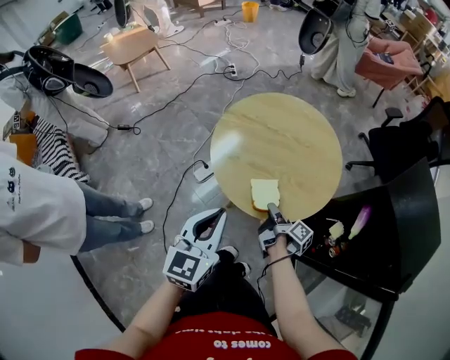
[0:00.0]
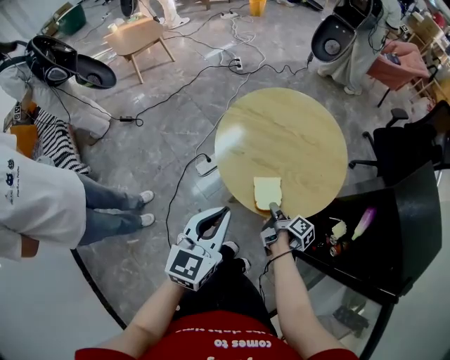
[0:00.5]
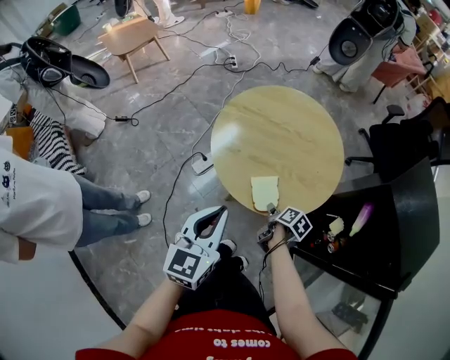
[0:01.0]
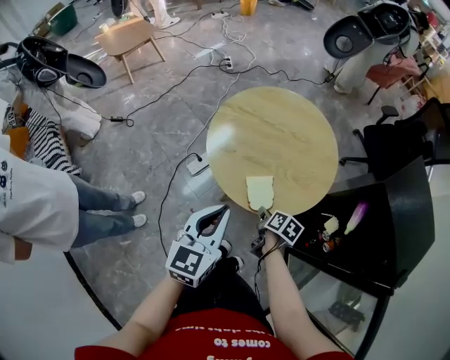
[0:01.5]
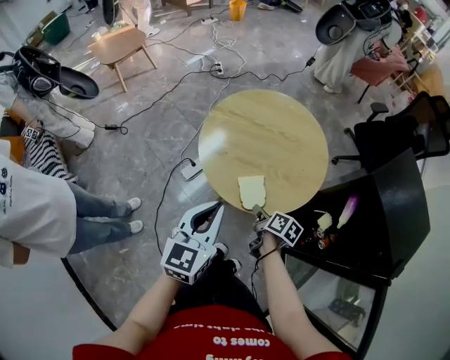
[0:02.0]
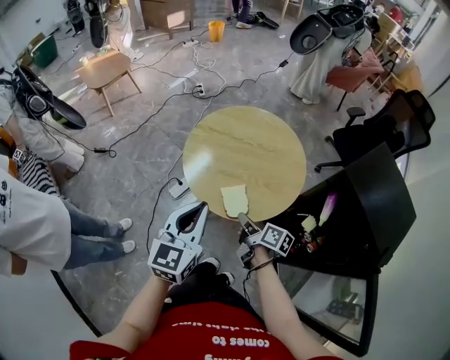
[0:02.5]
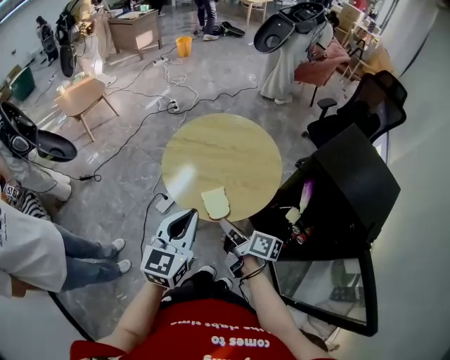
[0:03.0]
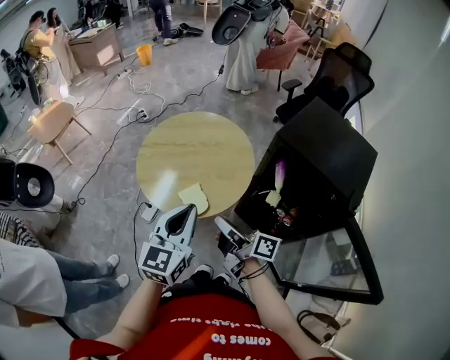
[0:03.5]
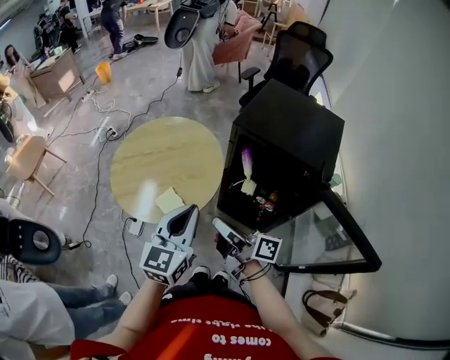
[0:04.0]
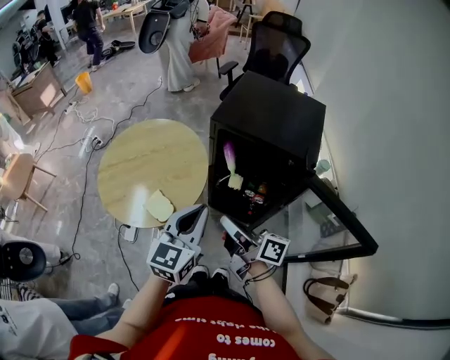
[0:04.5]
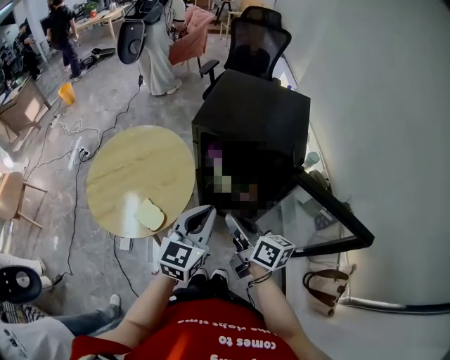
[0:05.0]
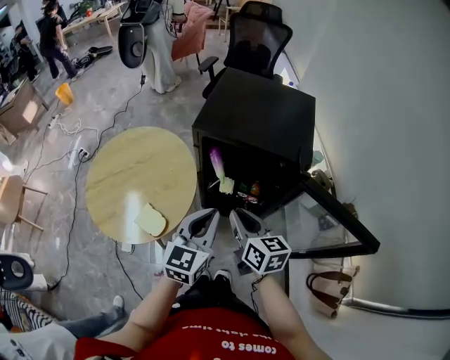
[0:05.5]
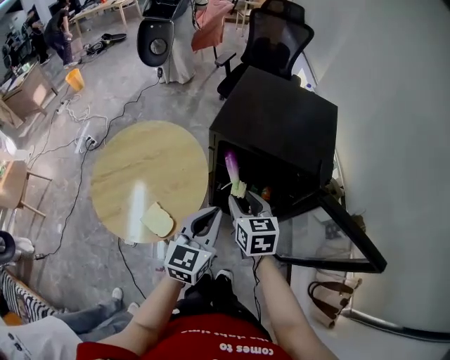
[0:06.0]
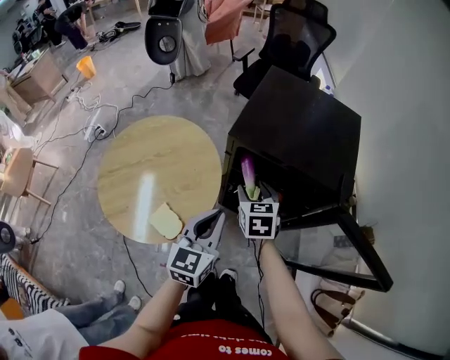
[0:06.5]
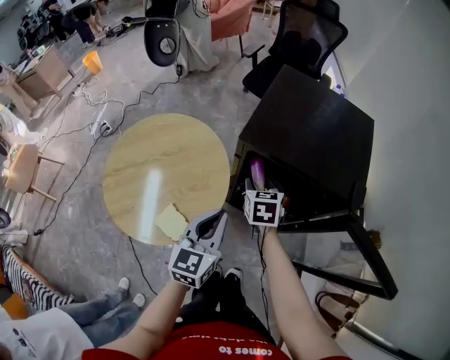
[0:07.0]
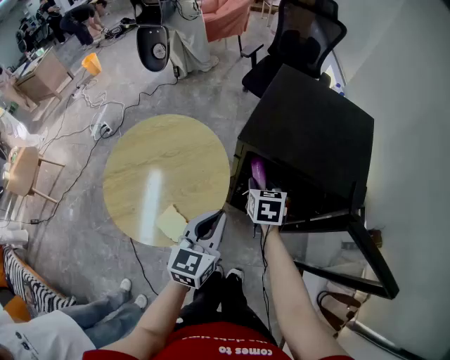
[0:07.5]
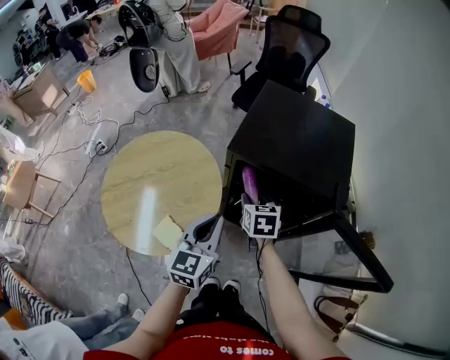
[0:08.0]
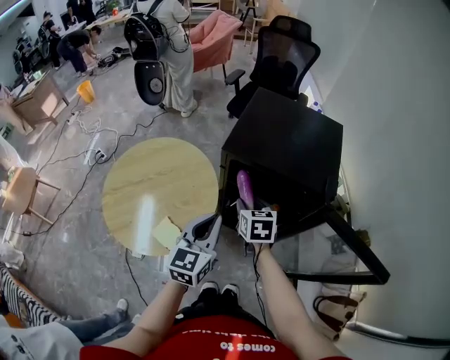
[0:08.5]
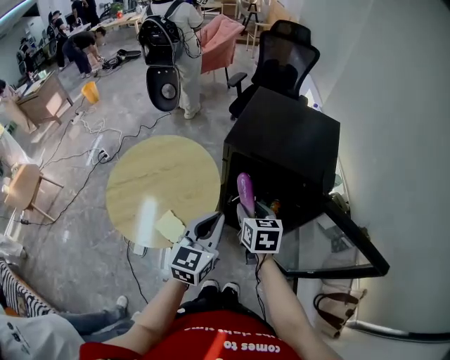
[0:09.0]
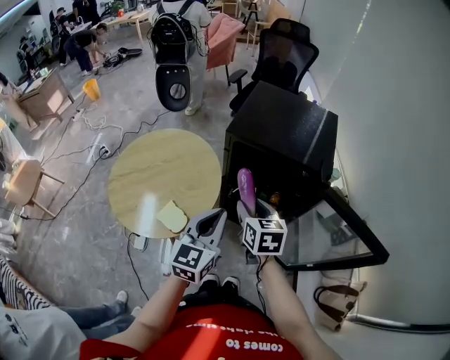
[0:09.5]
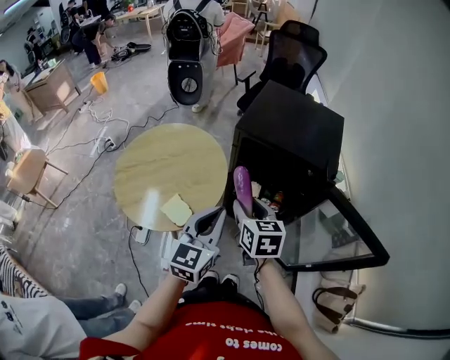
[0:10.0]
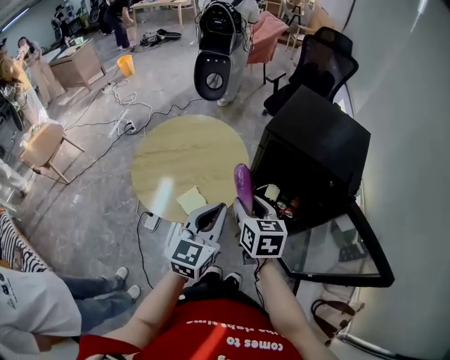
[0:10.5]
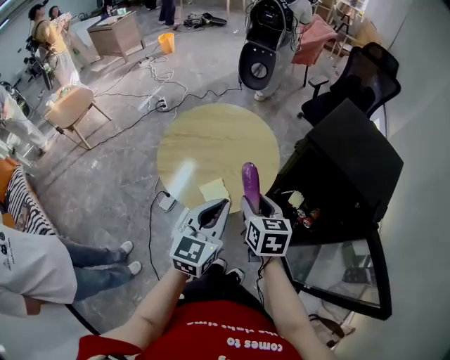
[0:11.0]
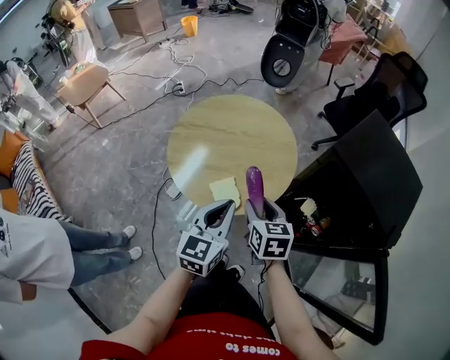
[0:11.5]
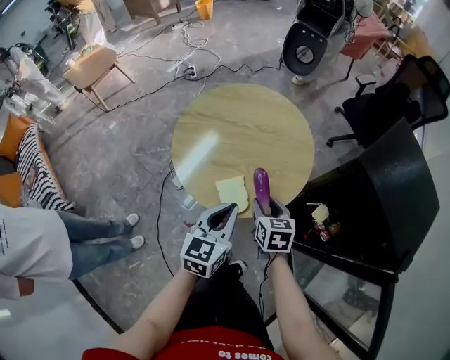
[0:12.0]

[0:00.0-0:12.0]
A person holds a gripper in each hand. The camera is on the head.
0:00.0 to 0:02.0: The right gripper changes its angle by about 30 degrees.
0:02.0 to 0:04.0: The left gripper moves to the right, roughly 20 cm, and changes its angle by some 30 degrees. Meanwhile the right gripper shifts roughly 30 cm upward, backward and to the right, and tilts its fingers some 50 degrees upward.
0:04.0 to 0:06.0: The right gripper shifts by some 20 cm, points its fingers some 40 degrees further downward, and opens its fingers. The left gripper shifts by about 15 cm.
0:06.0 to 0:08.0: The left gripper ends up roughly 5 cm from where it was. Meanwhile the right gripper moves forward and downward, about 10 cm.
0:08.0 to 0:10.0: The left gripper shifts approximately 10 cm backward and upward. Meanwhile the right gripper is displaced backward and upward by some 20 cm.
0:10.0 to 0:12.0: The left gripper shifts by approximately 20 cm, and swivels about 30 degrees, while the right gripper heads downward, covering some 20 cm, and rotates approximately 30 degrees.

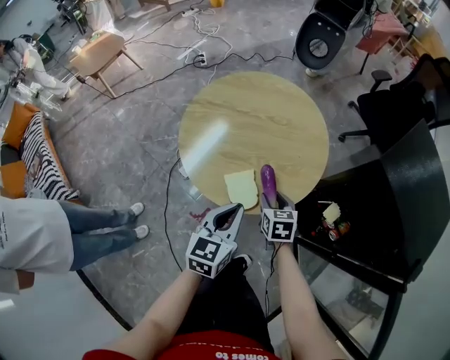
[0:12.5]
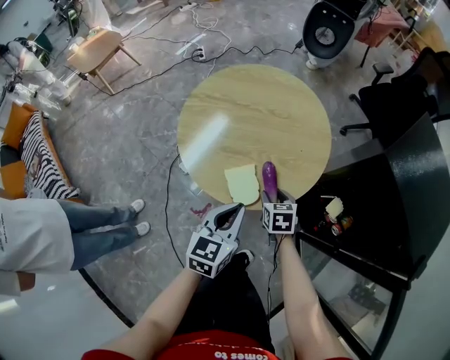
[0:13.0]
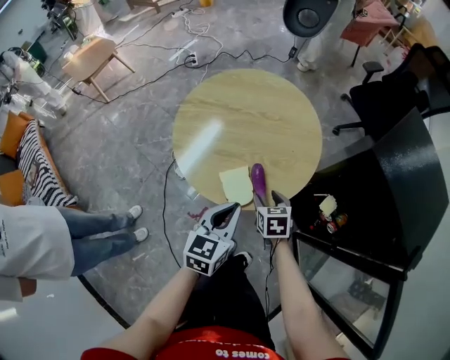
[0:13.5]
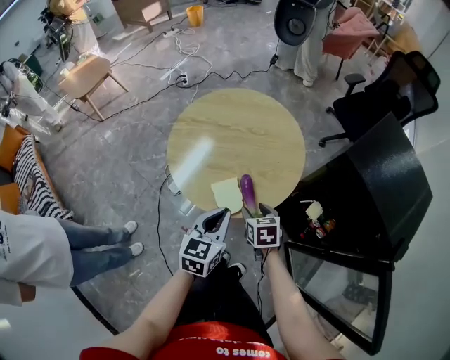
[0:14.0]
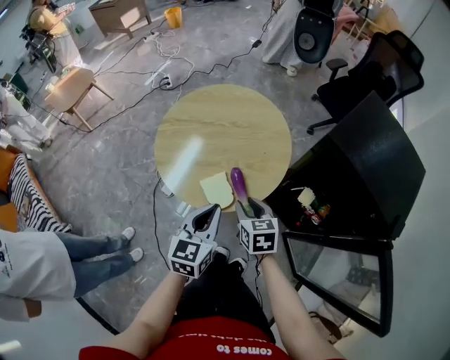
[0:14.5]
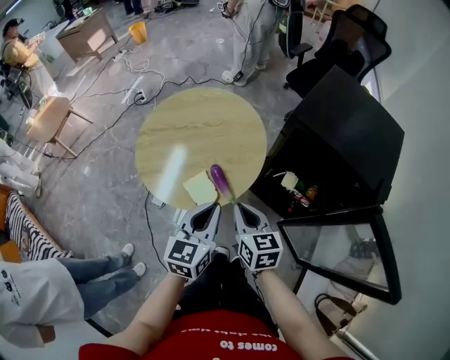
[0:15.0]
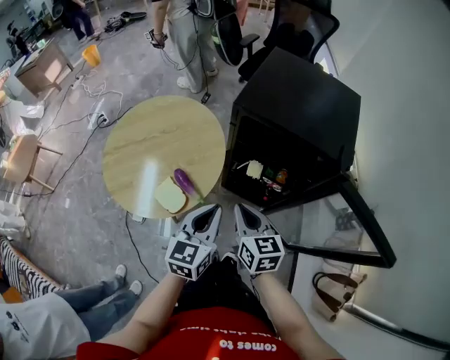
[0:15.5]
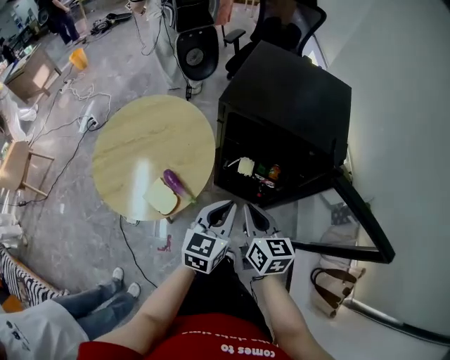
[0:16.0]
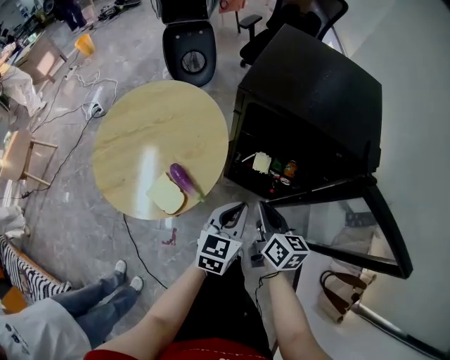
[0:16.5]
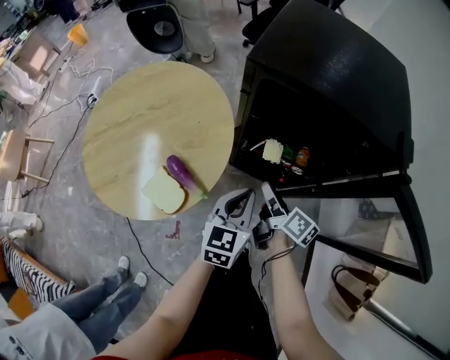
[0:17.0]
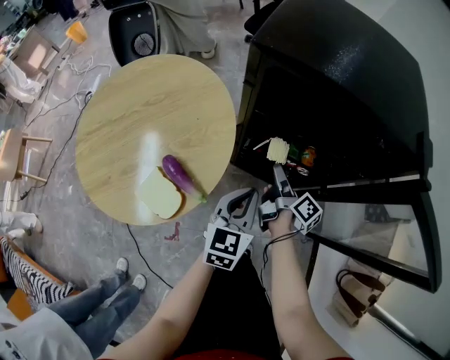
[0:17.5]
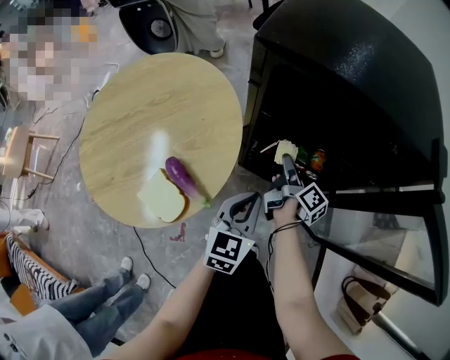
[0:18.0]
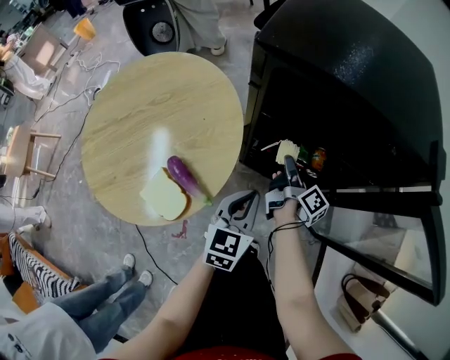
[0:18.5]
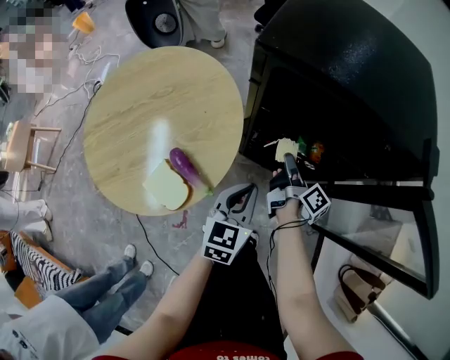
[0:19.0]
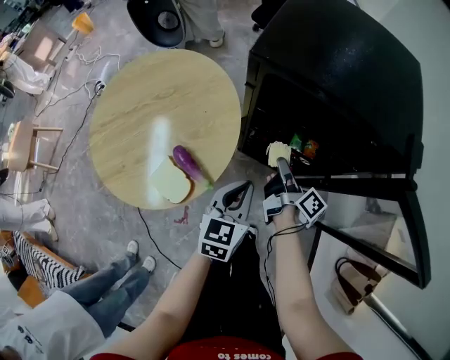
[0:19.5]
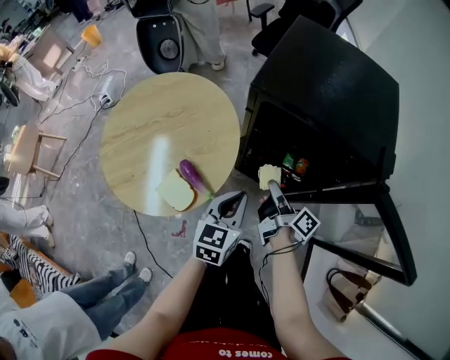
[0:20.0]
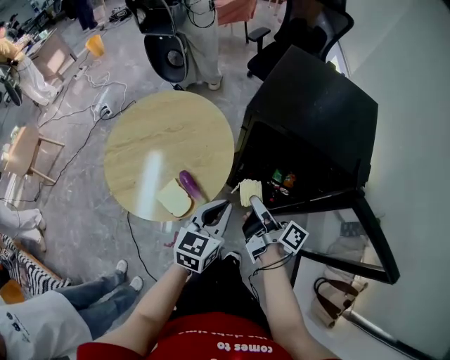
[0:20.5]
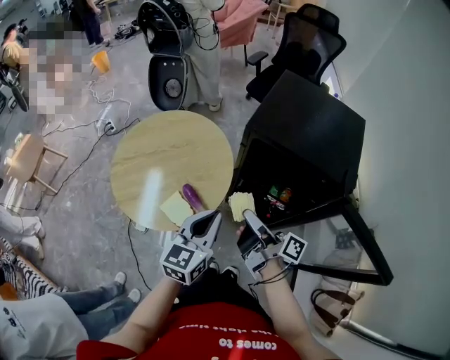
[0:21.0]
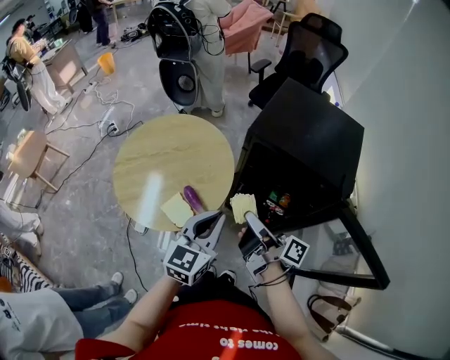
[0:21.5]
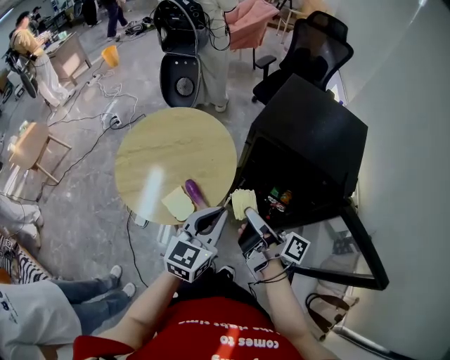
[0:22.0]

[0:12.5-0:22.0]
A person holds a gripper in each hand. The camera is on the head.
0:12.5 to 0:14.5: The left gripper changes place by roughly 5 cm. The right gripper moves upward and backward, some 10 cm.
0:14.5 to 0:16.5: The right gripper travels upward and back again, some 10 cm each way, turns by about 50 degrees, and closes its fingers. Meanwhile the left gripper shifts by about 25 cm, and rotates roughly 30 degrees.
0:16.5 to 0:18.0: The left gripper goes some 10 cm downward. Meanwhile the right gripper goes about 25 cm downward and forward, twists some 50 degrees clockwise, seen from behind, and opens.
0:18.0 to 0:20.0: The right gripper shifts about 20 cm upward and backward, and closes, while the left gripper heads upward, covering approximately 10 cm.
0:20.0 to 0:22.0: The two grippers go roughly 20 cm upward. The right gripper rotates approximately 30 degrees.

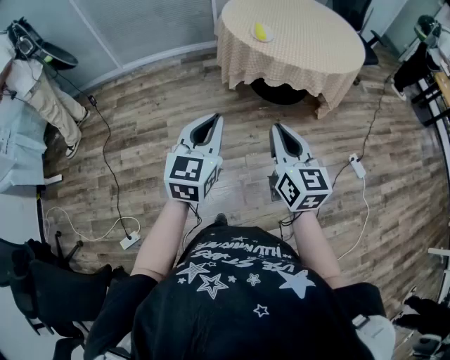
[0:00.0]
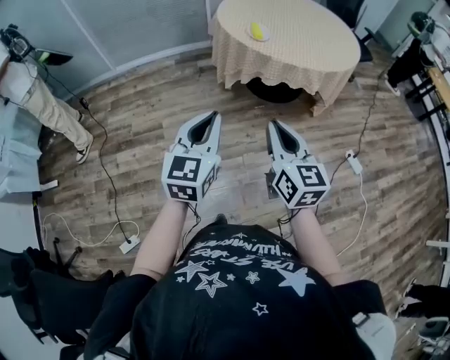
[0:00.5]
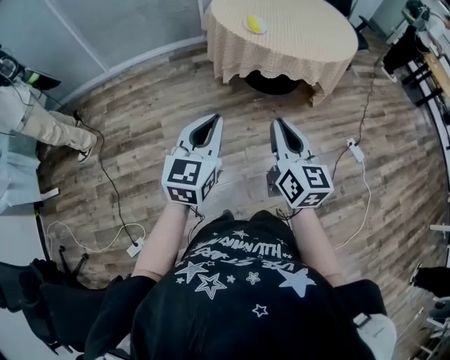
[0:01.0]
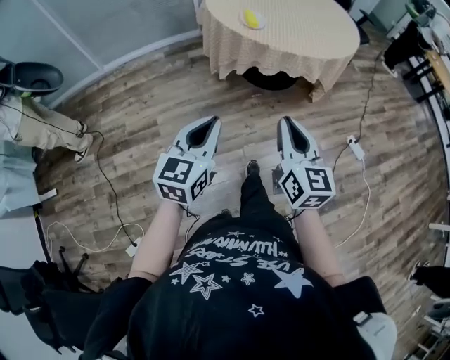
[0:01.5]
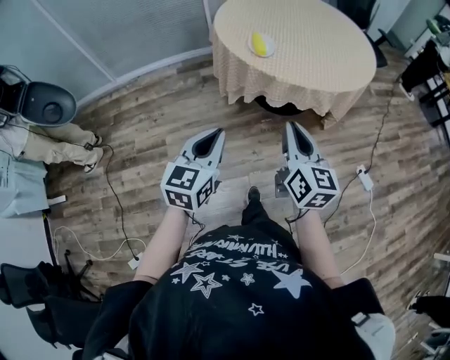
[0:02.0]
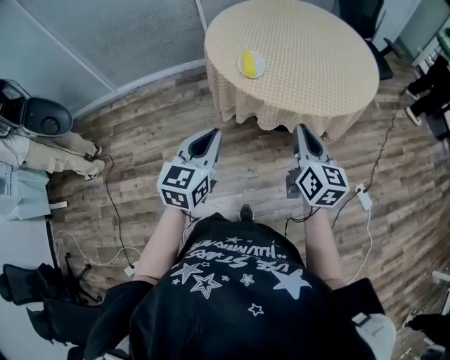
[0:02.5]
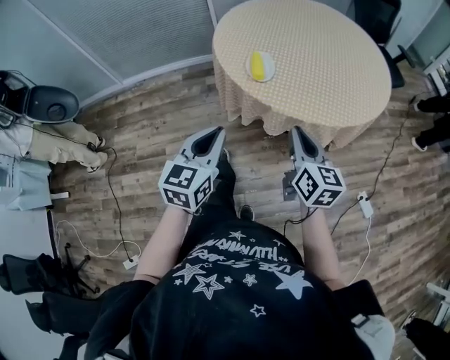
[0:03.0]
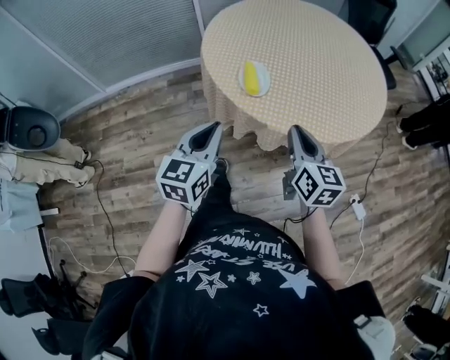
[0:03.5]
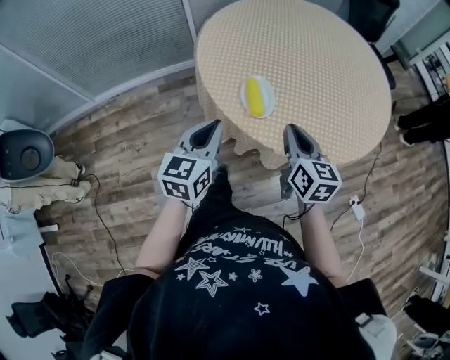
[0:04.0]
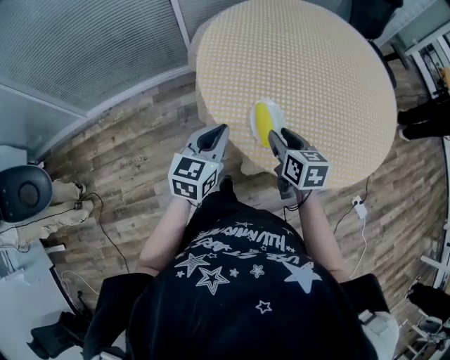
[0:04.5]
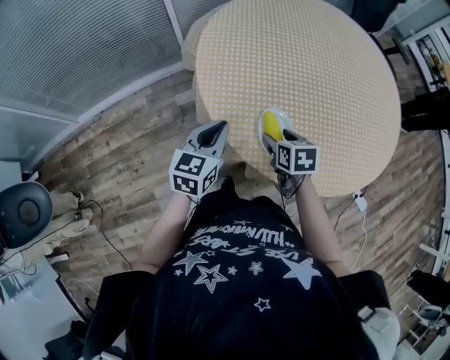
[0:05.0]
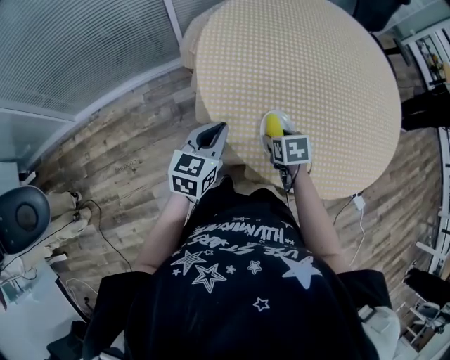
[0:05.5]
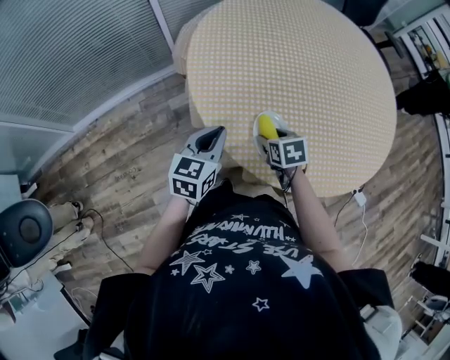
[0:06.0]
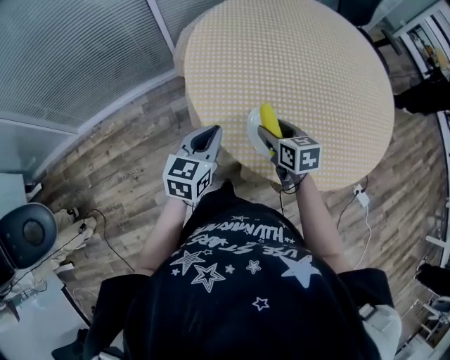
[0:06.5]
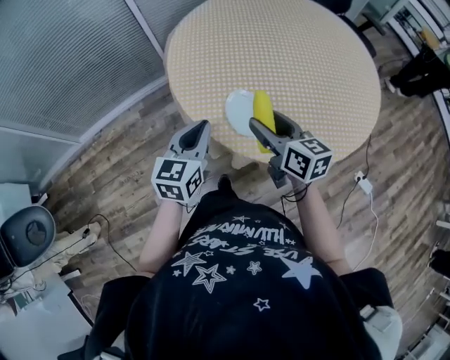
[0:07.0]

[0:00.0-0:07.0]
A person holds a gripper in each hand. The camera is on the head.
0:00.0 to 0:02.0: The two grippers go some 20 cm forward.
0:02.0 to 0:03.5: The grippers both shift forward by about 25 cm.
0:03.5 to 0:05.0: The left gripper heads forward, covering about 30 cm. The right gripper shifts roughly 35 cm forward, downward and to the left, tilts its fingers roughly 40 degrees downward, and opens its fingers.
0:05.0 to 0:07.0: The left gripper travels backward, to the right and upward by roughly 10 cm, while the right gripper is displaced upward and backward by some 15 cm, and tips its fingers upward by about 40 degrees.
